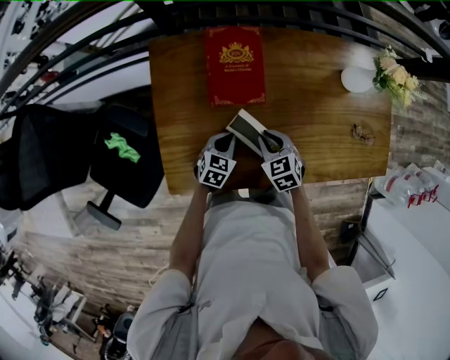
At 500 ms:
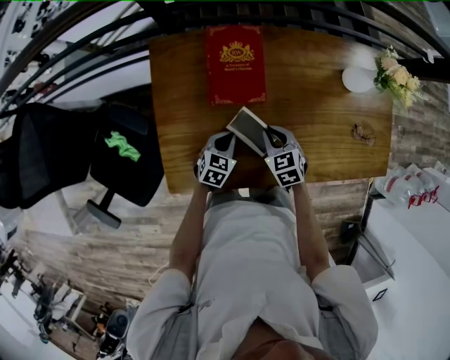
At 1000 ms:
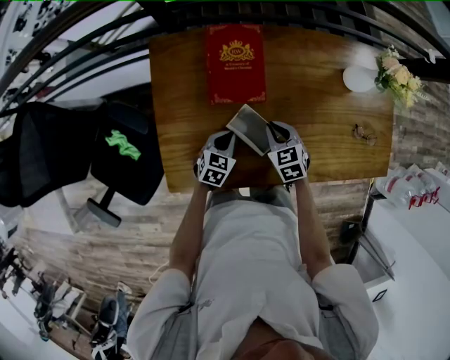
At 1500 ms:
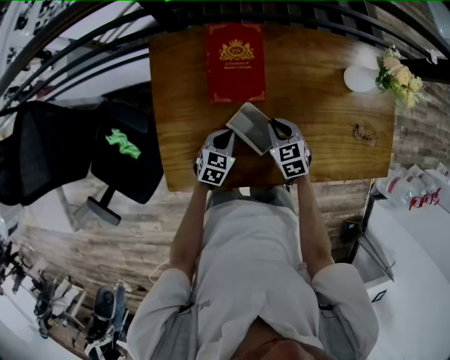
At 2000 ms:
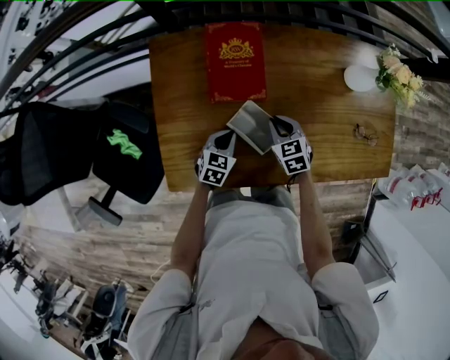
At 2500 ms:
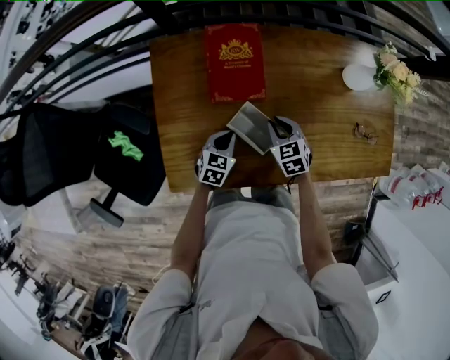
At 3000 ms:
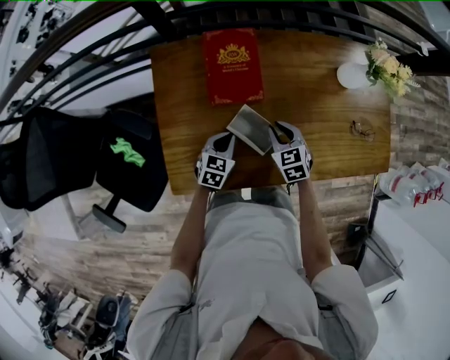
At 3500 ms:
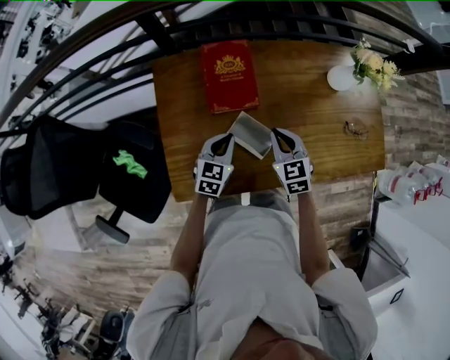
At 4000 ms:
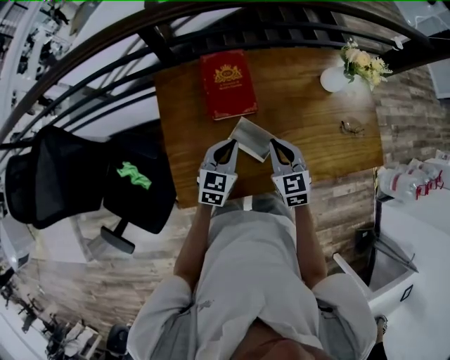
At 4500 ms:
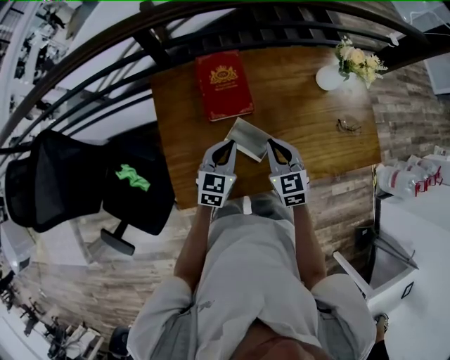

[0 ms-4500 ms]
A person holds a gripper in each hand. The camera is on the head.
0 ms to 2000 ms: The right gripper changes place by roughly 5 cm.
2000 ms to 4500 ms: The right gripper goes approximately 15 cm upward and backward, and rotates roughly 20 degrees. The left gripper heads upward, covering some 15 cm, and swivels roughly 20 degrees.

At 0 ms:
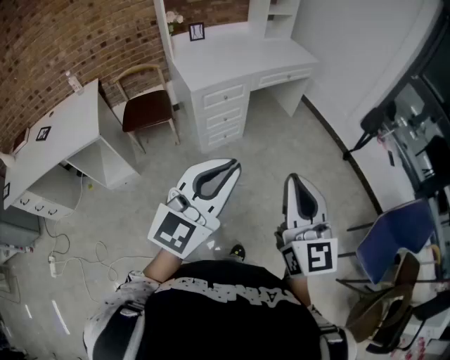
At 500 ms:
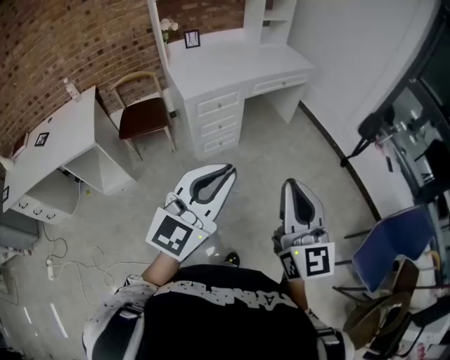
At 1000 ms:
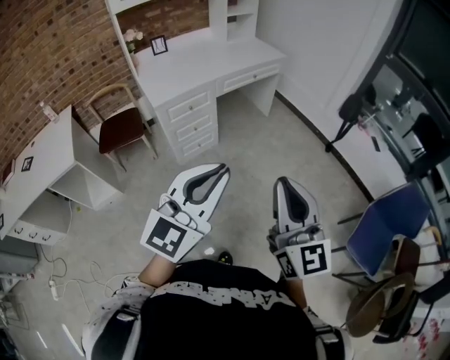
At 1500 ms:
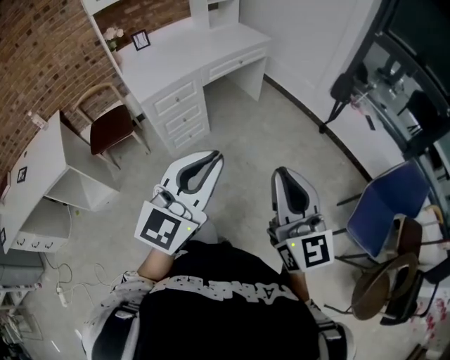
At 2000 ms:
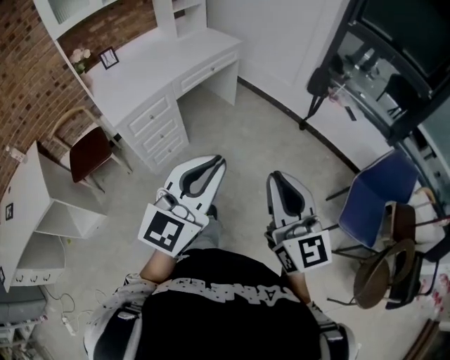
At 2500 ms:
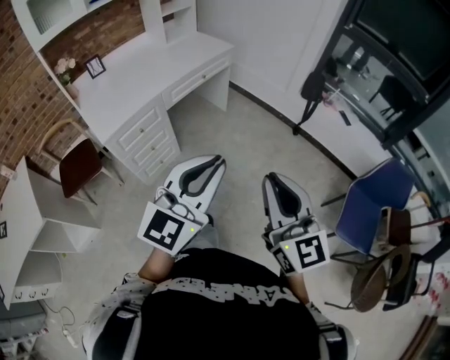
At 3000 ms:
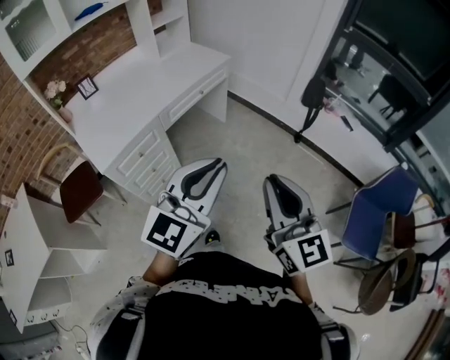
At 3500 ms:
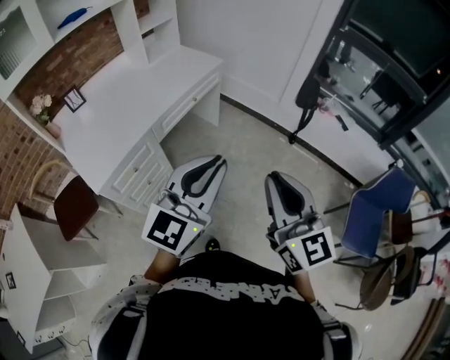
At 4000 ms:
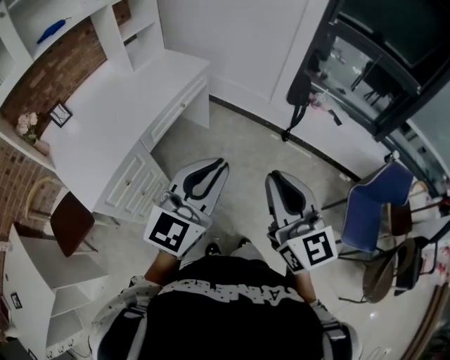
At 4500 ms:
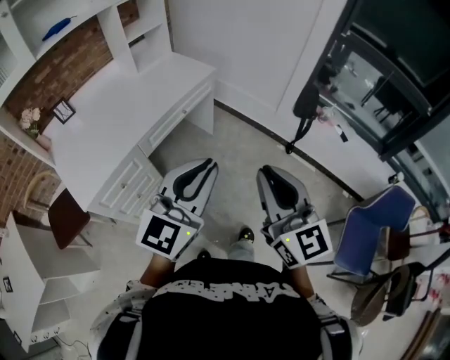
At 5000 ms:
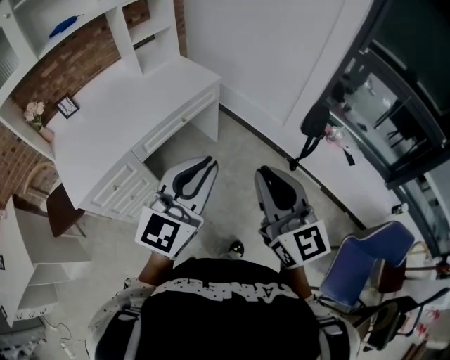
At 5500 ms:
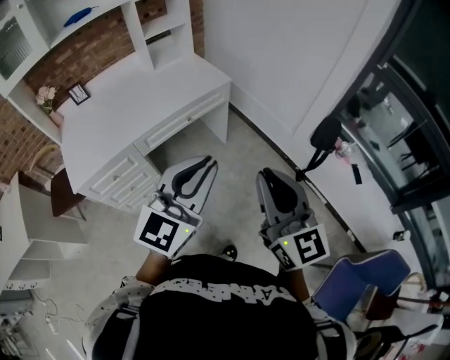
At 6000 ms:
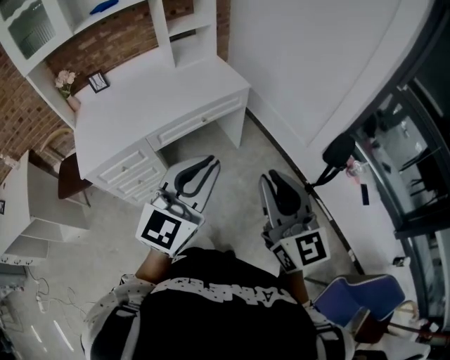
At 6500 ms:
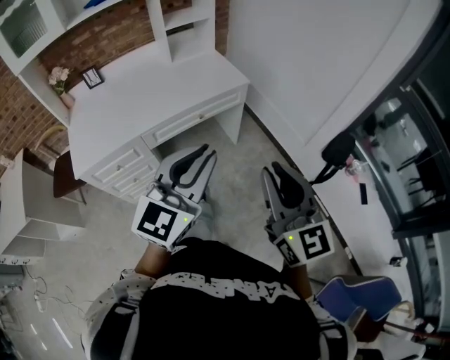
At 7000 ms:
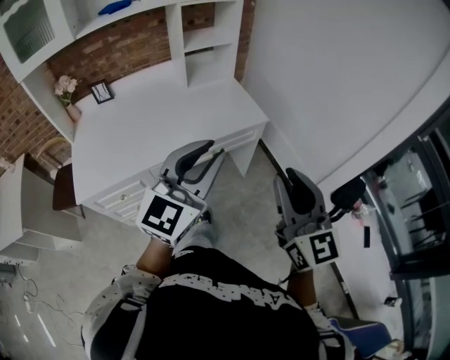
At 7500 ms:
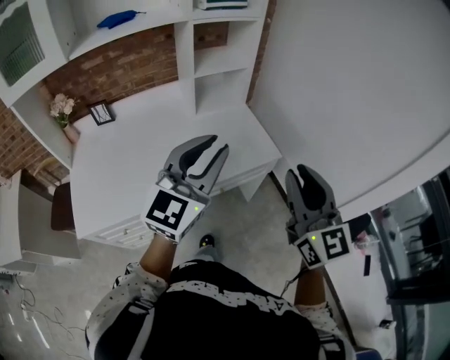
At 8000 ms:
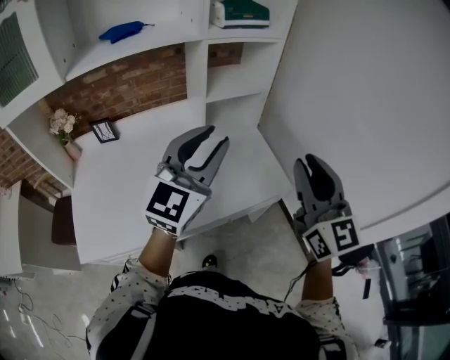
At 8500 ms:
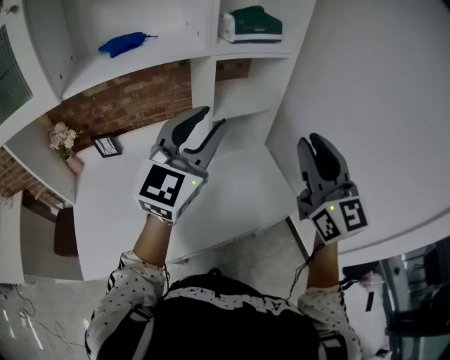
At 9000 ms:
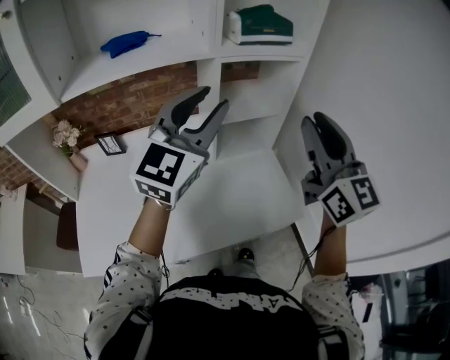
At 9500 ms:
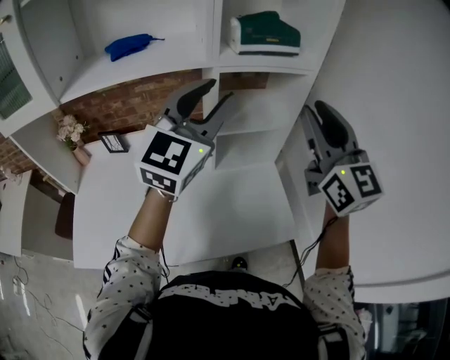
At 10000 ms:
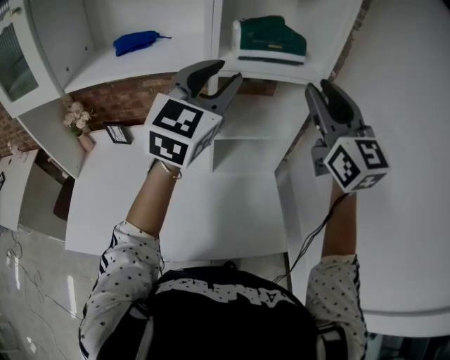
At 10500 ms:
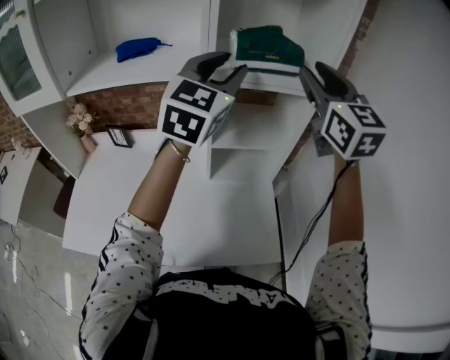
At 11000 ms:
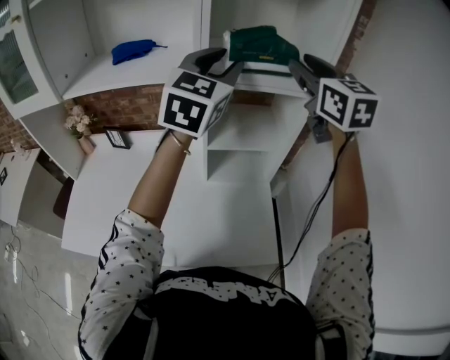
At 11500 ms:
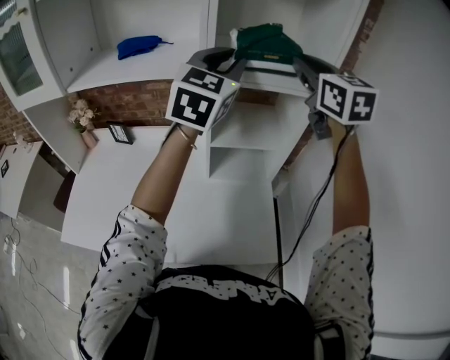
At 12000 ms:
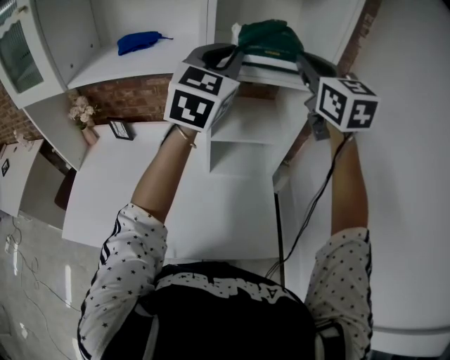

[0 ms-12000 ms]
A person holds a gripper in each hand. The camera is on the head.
0 ms to 2000 ms: The grippers both shift to the right and forward by about 20 cm.
2000 ms to 4000 ms: The grippers both shift forward by roughly 30 cm.
4000 ms to 6000 ms: The right gripper changes place by about 25 cm, and rotates approximately 30 degrees; the left gripper moves about 20 cm, and rotates roughly 30 degrees.
6000 ms to 8000 ms: Both grippers are carried forward, roughly 50 cm.
8000 ms to 10000 ms: The right gripper moves forward, roughly 30 cm. Meanwhile the left gripper goes about 25 cm forward and upward, and turns by approximately 20 degrees.
10000 ms to 12000 ms: The left gripper goes approximately 5 cm forward, and closes its fingers. Meanwhile the right gripper shifts about 10 cm forward, and closes.

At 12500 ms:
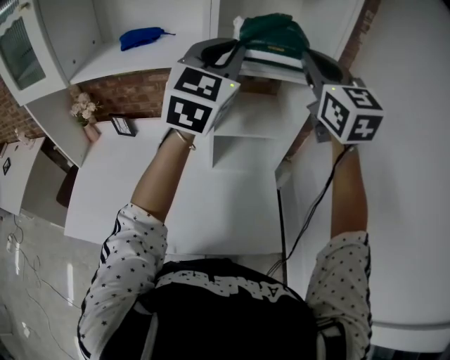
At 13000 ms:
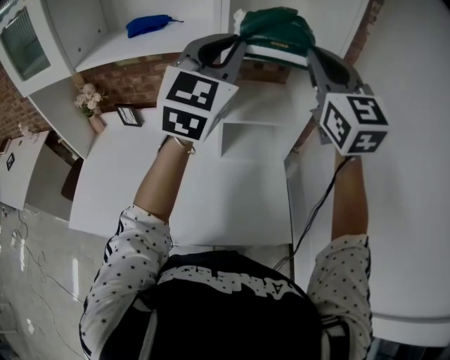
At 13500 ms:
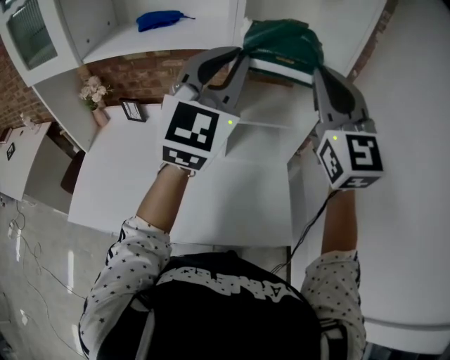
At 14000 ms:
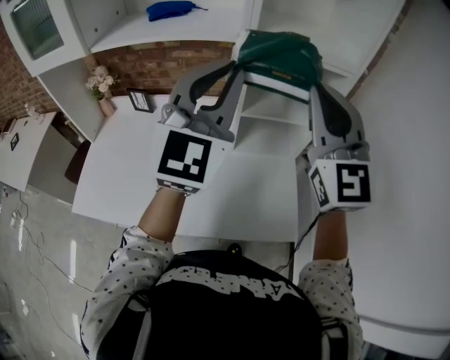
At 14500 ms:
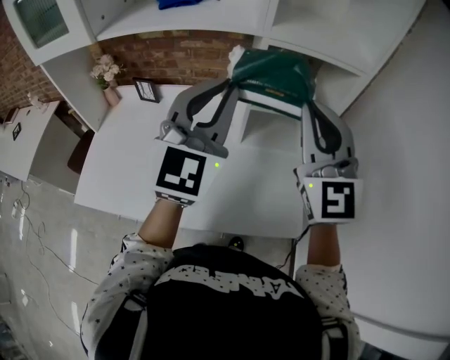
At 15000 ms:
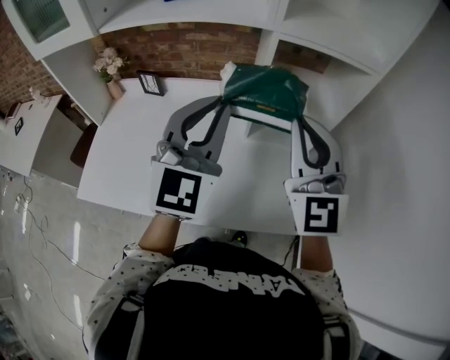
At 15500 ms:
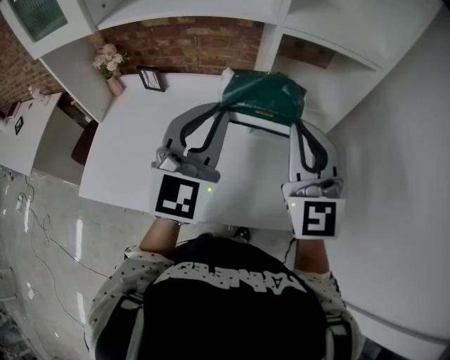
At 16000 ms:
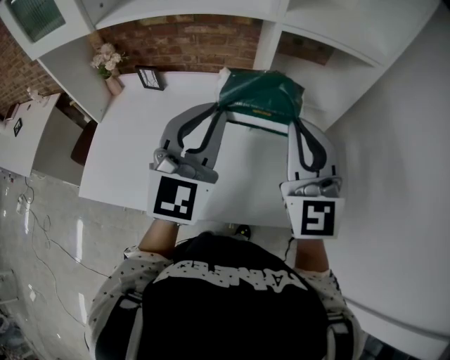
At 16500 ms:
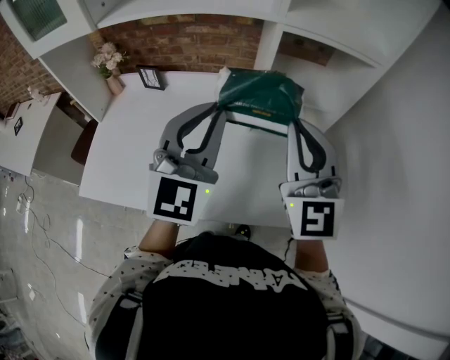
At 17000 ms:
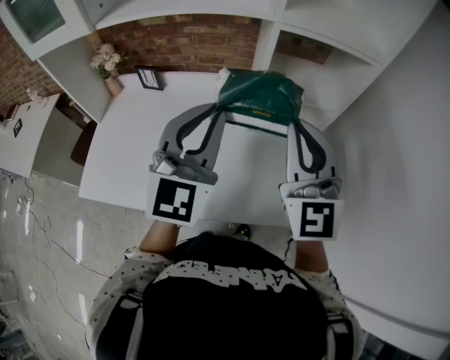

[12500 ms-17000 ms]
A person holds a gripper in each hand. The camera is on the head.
12500 ms to 14500 ms: The two grippers go roughly 20 cm backward, downward and to the left.
14500 ms to 17000 ms: The grippers both shift downward by some 5 cm.

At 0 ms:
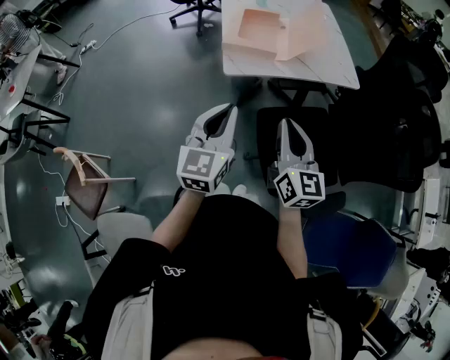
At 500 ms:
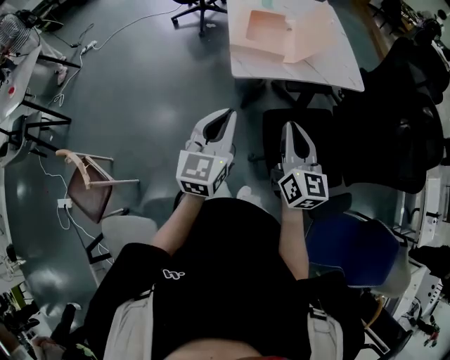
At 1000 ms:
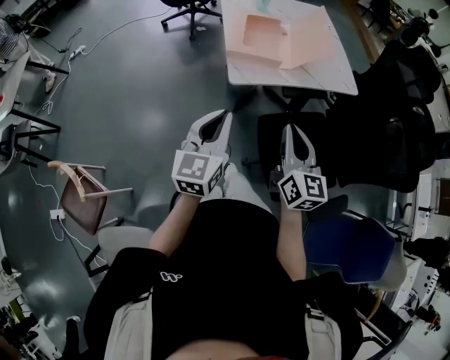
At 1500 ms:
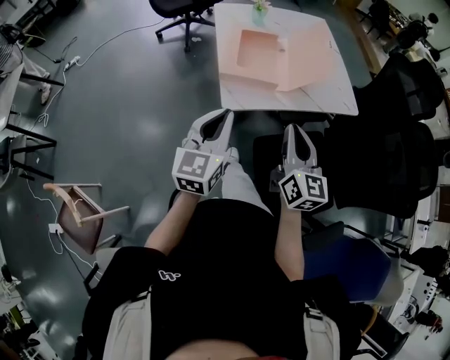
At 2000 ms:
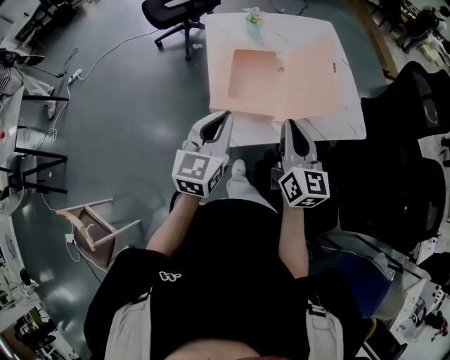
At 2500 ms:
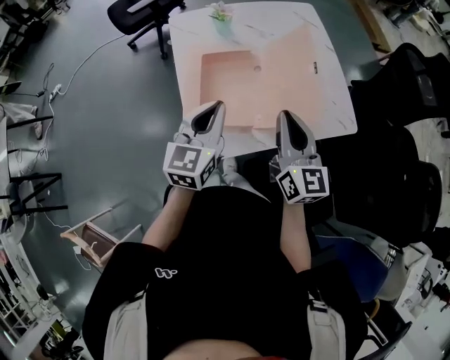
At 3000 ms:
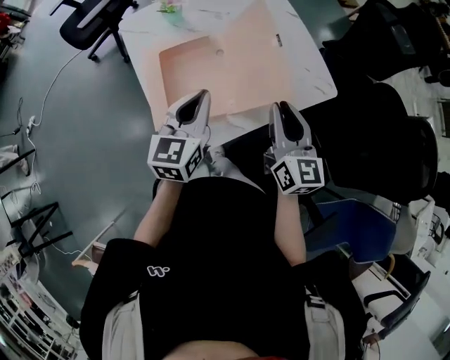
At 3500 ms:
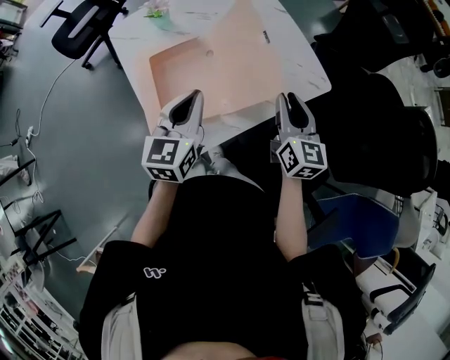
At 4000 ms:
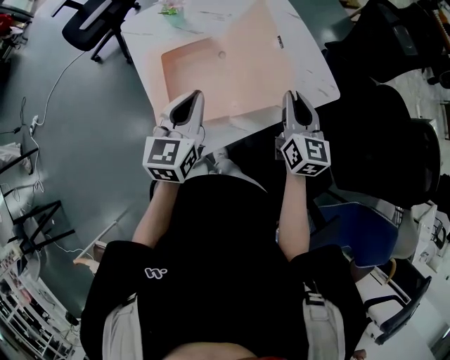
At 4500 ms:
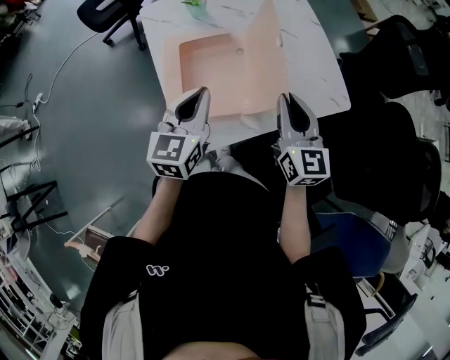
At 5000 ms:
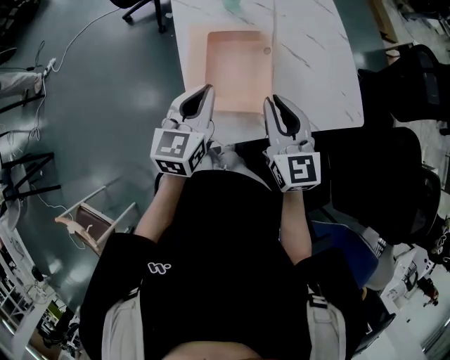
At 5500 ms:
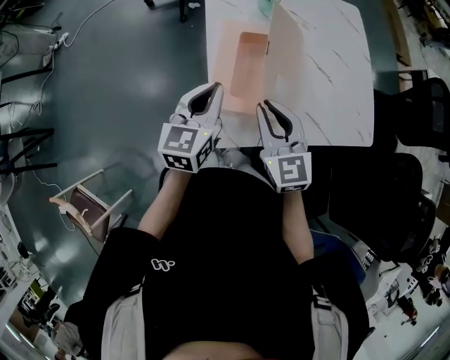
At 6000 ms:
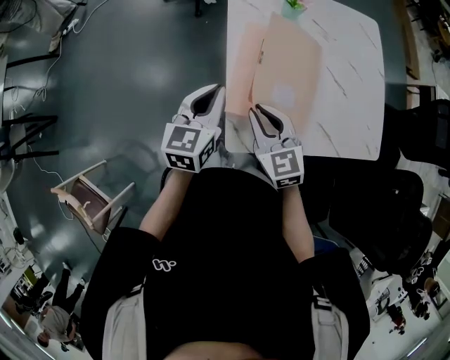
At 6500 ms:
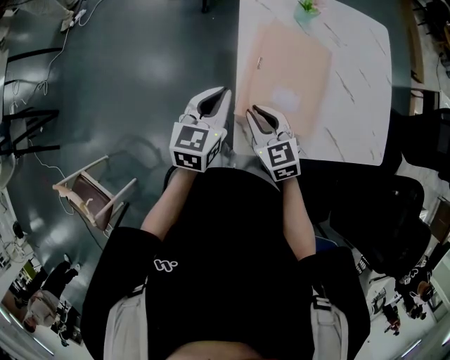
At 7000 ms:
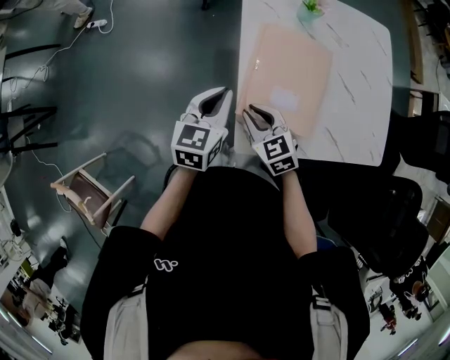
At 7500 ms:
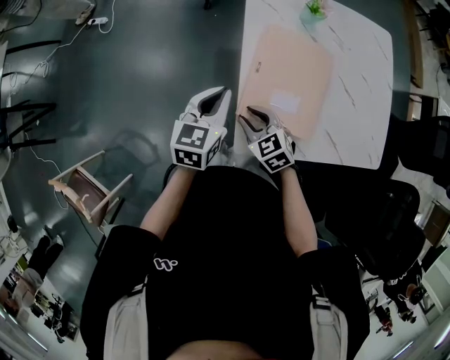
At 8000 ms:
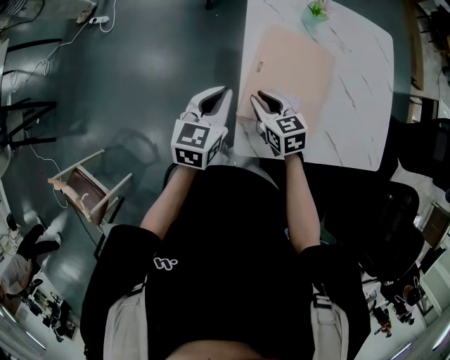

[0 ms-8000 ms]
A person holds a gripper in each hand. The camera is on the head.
0 ms to 2000 ms: Both grippers travel together forward, approximately 30 cm.
2000 ms to 4000 ms: The left gripper travels forward by about 15 cm; the right gripper shifts about 20 cm to the right, forward and downward, and rotates some 20 degrees.
4000 ms to 6000 ms: The right gripper shifts by some 35 cm, and changes its angle by about 50 degrees. Meanwhile the left gripper ends up about 20 cm from where it was, and changes its angle by some 20 degrees.
6000 ms to 8000 ms: The right gripper is displaced downward and forward by about 10 cm, and turns by some 20 degrees.
